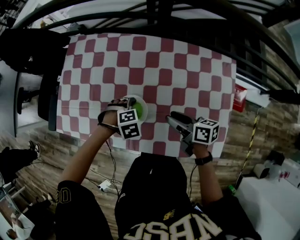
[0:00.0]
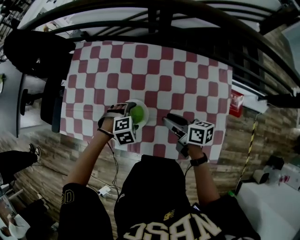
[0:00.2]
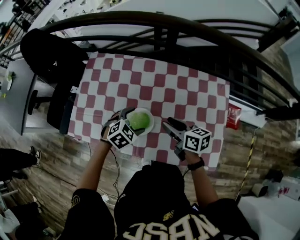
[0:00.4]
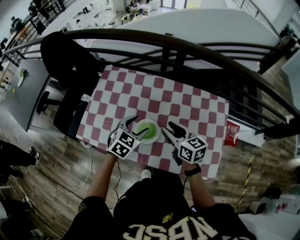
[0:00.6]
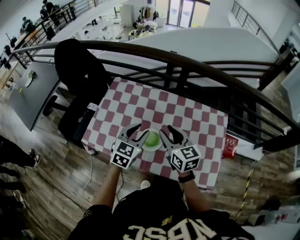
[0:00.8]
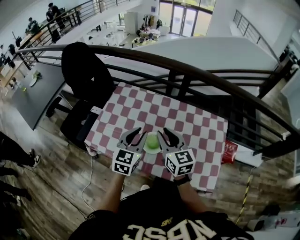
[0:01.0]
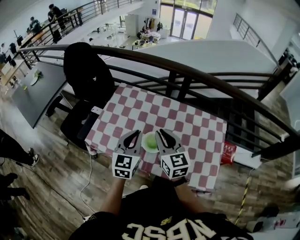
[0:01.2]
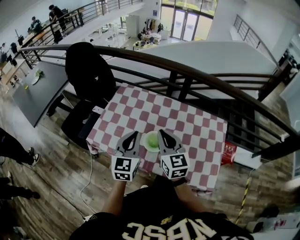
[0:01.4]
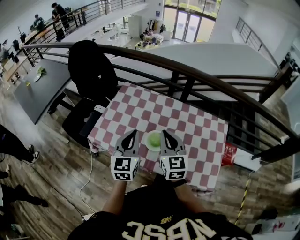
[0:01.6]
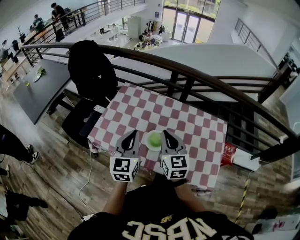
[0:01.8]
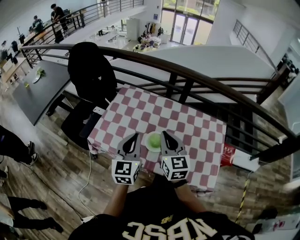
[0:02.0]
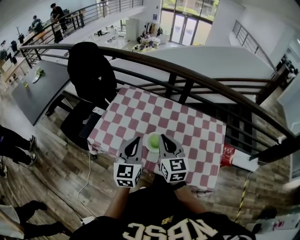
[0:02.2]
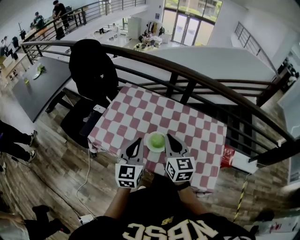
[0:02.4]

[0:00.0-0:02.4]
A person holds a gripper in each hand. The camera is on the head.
0:00.0 to 0:01.2: Both grippers travel together upward, approximately 30 cm. The left gripper tips its fingers upward by about 70 degrees, and closes. The right gripper rolls counterclockwise, seen from behind, by some 50 degrees, and closes its fingers.
0:01.2 to 0:02.4: The left gripper shifts some 5 cm backward.

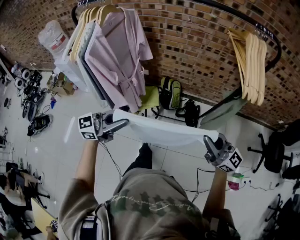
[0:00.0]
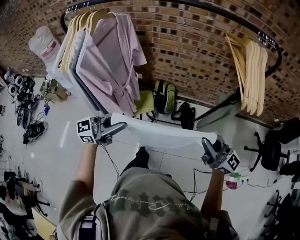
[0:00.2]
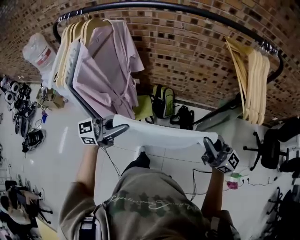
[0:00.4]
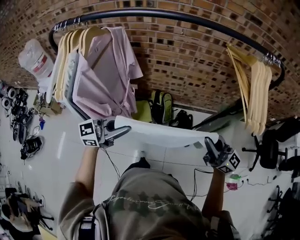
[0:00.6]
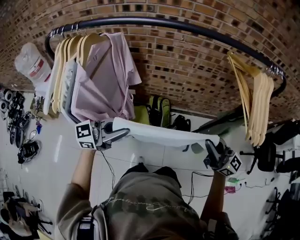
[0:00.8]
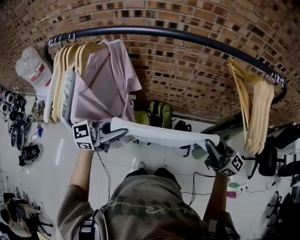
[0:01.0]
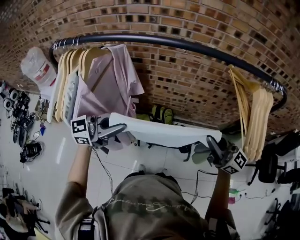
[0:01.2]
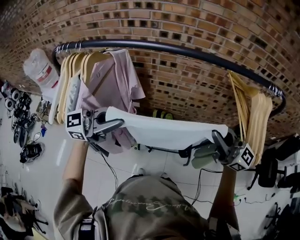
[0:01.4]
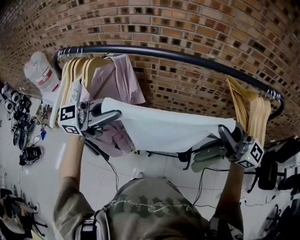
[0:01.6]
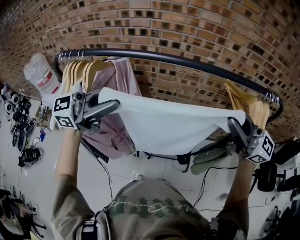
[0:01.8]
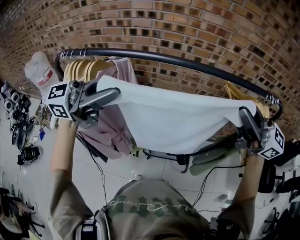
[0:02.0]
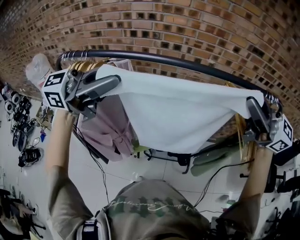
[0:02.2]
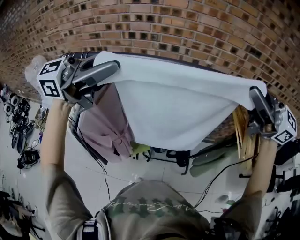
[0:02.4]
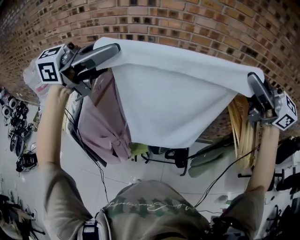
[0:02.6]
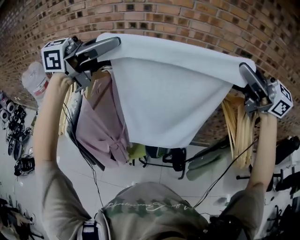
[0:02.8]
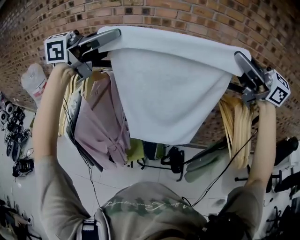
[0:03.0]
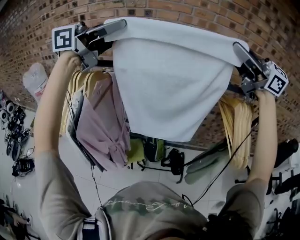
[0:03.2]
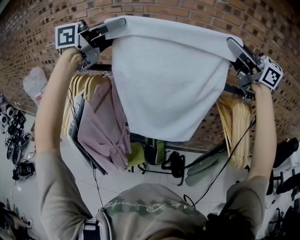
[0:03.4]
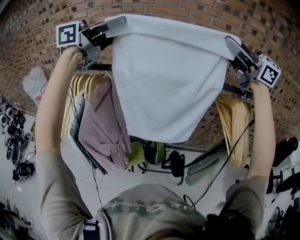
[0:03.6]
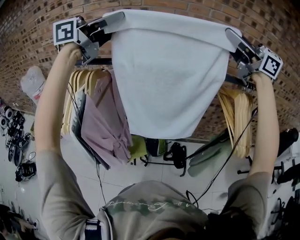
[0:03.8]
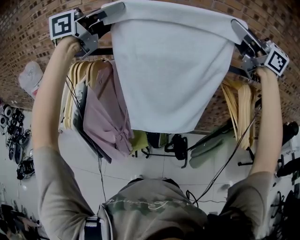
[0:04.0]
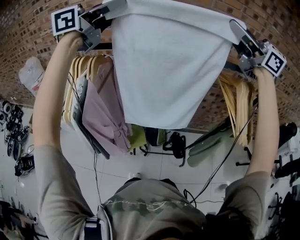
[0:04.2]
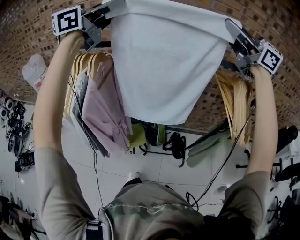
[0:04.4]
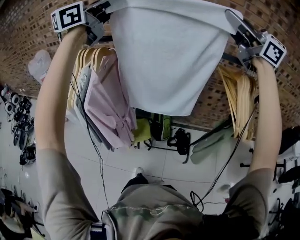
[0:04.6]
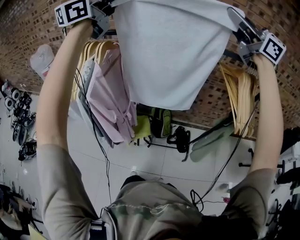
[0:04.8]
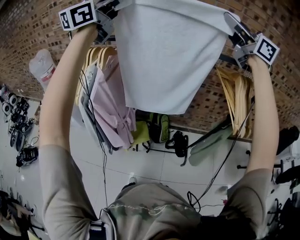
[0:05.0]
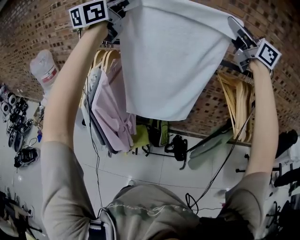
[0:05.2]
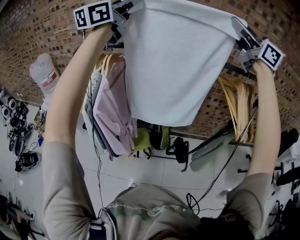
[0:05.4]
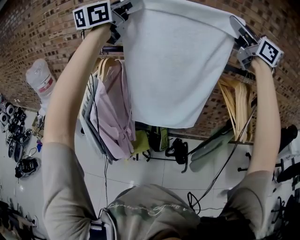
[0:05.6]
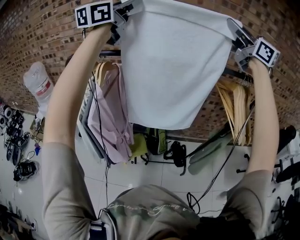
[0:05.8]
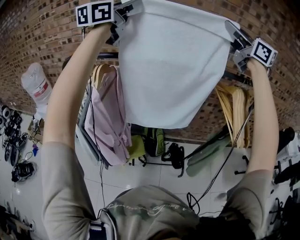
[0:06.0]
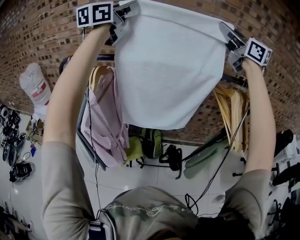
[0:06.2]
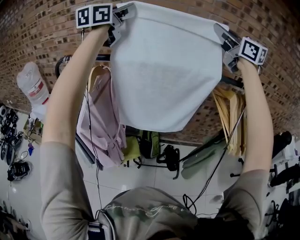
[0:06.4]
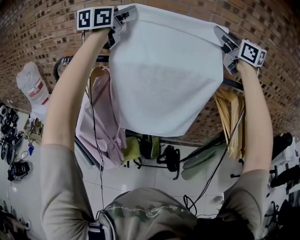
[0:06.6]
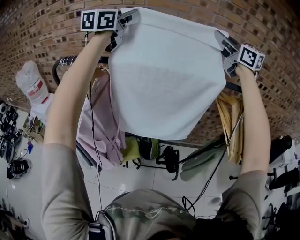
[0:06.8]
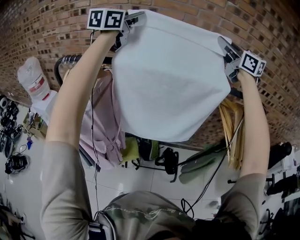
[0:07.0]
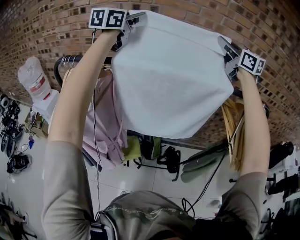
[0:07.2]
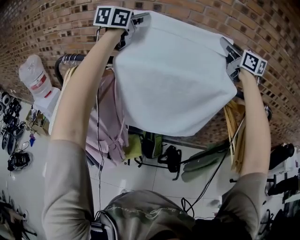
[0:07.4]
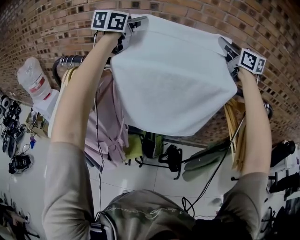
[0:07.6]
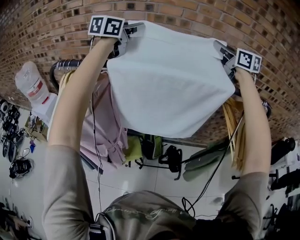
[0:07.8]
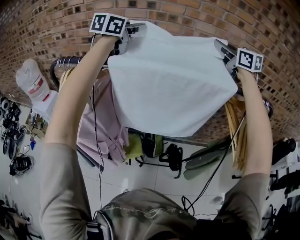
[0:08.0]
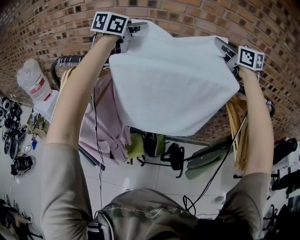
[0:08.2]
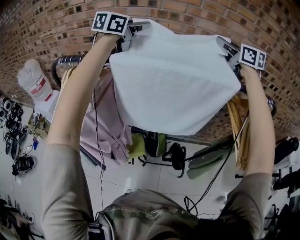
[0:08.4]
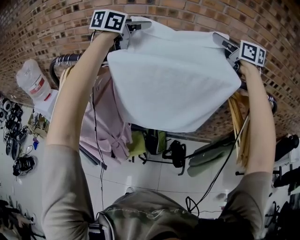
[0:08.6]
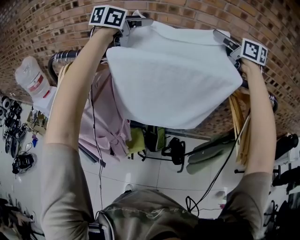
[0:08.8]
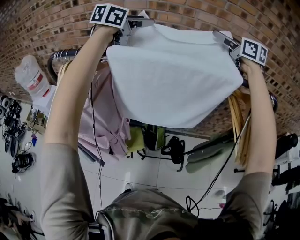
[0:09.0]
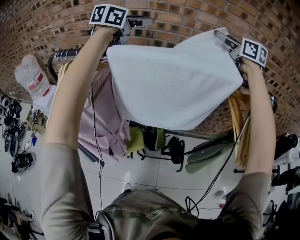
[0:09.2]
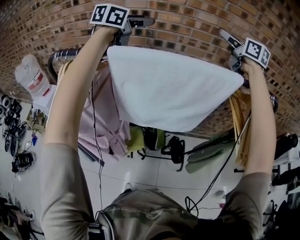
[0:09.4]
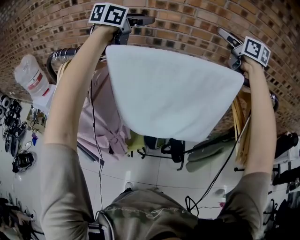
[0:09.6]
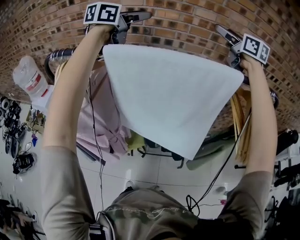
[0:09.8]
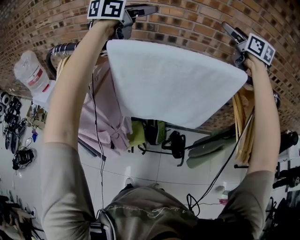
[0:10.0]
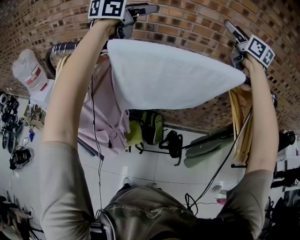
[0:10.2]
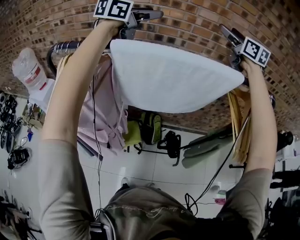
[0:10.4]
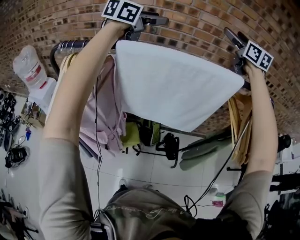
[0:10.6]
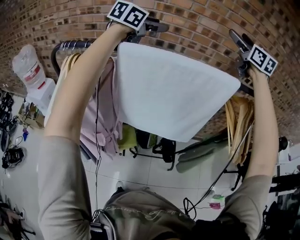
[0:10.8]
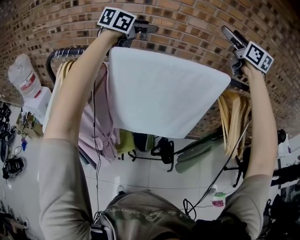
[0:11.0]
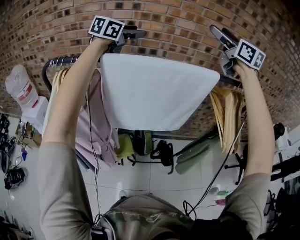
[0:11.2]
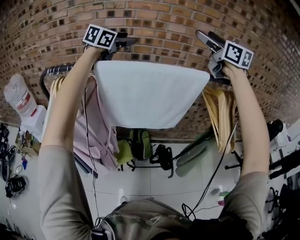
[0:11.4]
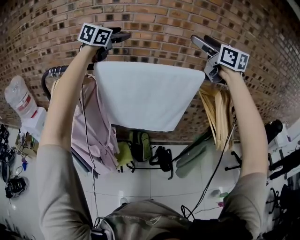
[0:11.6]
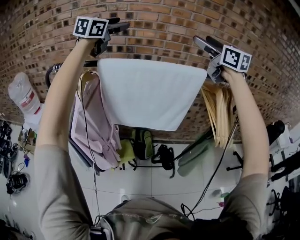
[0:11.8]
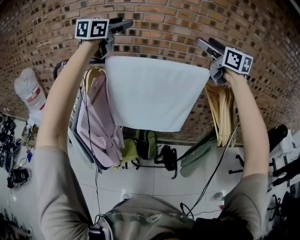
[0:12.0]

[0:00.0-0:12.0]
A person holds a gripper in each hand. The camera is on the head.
0:00.0 to 0:01.6: The right gripper ends up roughly 35 cm from where it was. Meanwhile the left gripper ends up approximately 30 cm from where it was.
0:01.6 to 0:03.0: Both grippers move upward, some 25 cm.
0:03.0 to 0:04.4: There are only small adjustments of the grippers.
0:04.4 to 0:06.0: Both grippers move forward, approximately 5 cm.
0:06.0 to 0:07.6: The two grippers go roughly 20 cm forward and downward.
0:07.6 to 0:09.0: The left gripper heads downward, covering about 5 cm, and opens its fingers, while the right gripper opens.
0:09.0 to 0:10.4: The grippers make only small movements.
0:10.4 to 0:12.0: The right gripper moves backward, roughly 15 cm, while the left gripper shifts approximately 10 cm upward and backward, and rotates roughly 20 degrees.

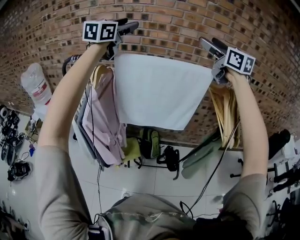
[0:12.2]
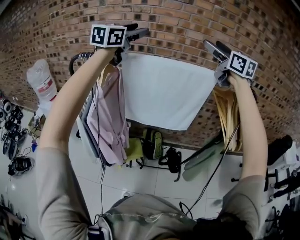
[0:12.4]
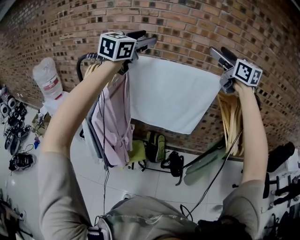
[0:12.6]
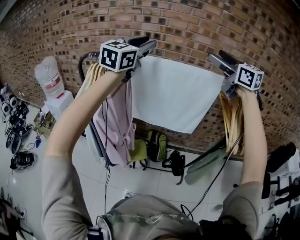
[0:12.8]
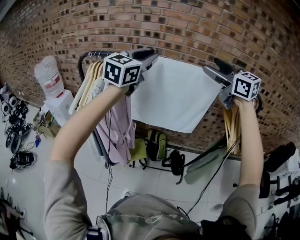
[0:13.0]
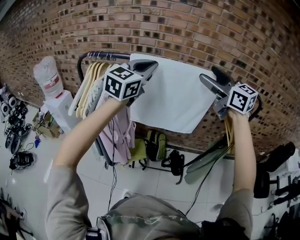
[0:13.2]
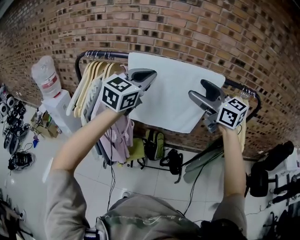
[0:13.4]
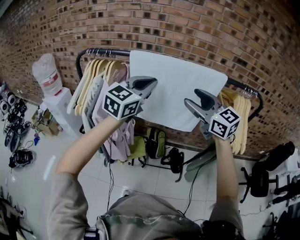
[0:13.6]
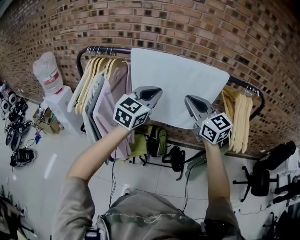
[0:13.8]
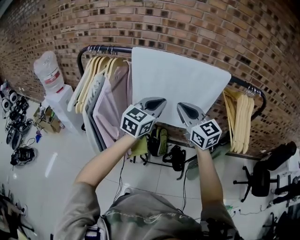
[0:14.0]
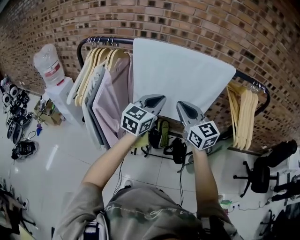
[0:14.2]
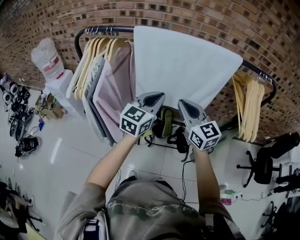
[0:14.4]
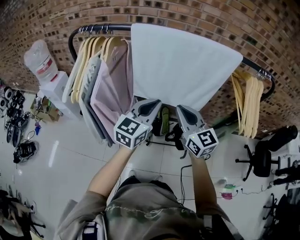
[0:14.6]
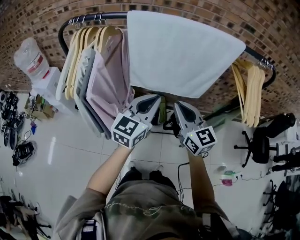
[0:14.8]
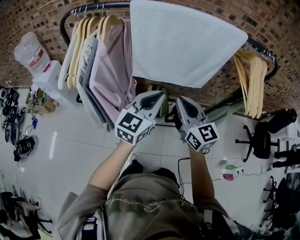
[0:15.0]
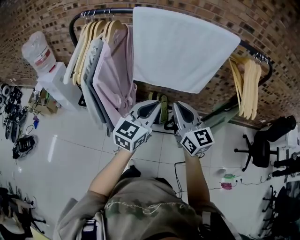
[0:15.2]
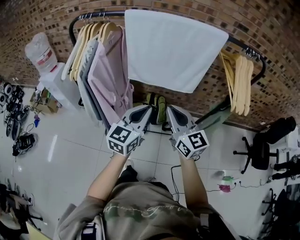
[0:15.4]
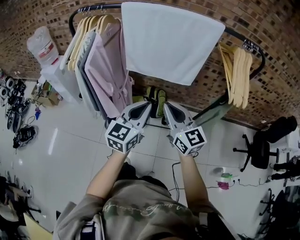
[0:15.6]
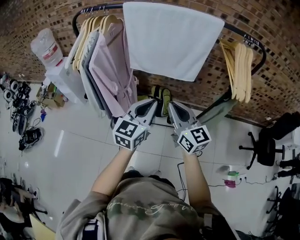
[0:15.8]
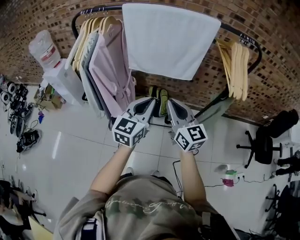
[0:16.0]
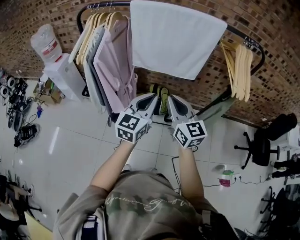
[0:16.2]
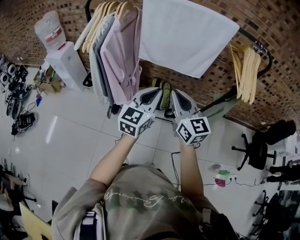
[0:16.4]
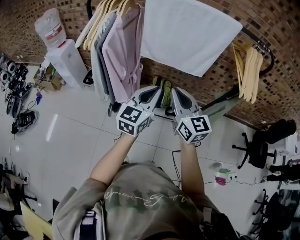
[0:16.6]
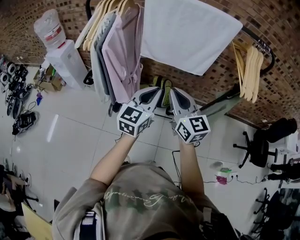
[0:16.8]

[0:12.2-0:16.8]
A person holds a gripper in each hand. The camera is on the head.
0:12.2 to 0:13.8: The left gripper is displaced downward and backward by about 30 cm, and closes its fingers, while the right gripper moves downward, backward and to the left, approximately 30 cm, and closes up.
0:13.8 to 0:15.2: The left gripper goes about 20 cm backward and downward, while the right gripper travels downward and backward by approximately 20 cm.
0:15.2 to 0:16.8: Both grippers move backward, roughly 5 cm.

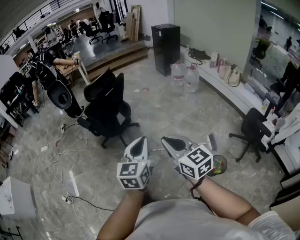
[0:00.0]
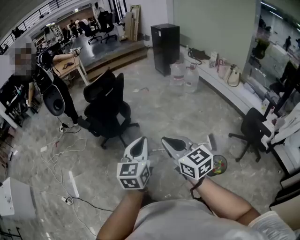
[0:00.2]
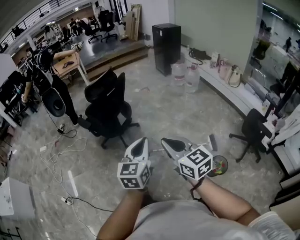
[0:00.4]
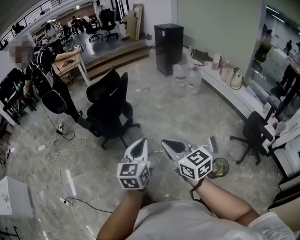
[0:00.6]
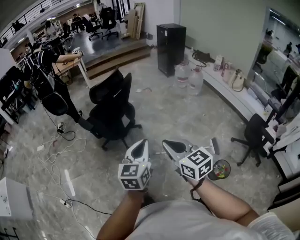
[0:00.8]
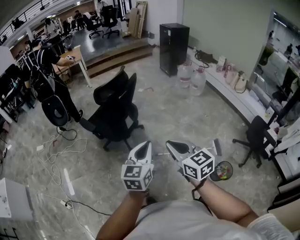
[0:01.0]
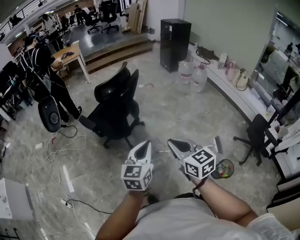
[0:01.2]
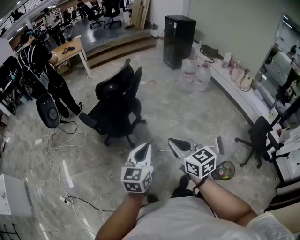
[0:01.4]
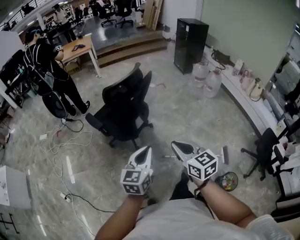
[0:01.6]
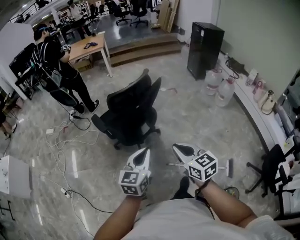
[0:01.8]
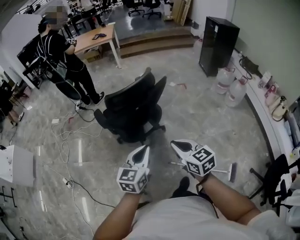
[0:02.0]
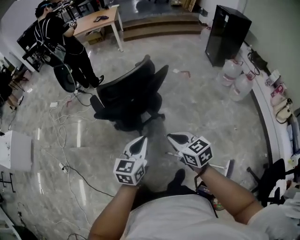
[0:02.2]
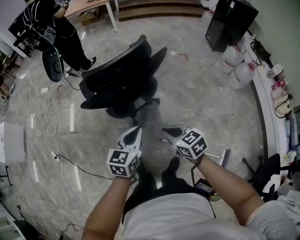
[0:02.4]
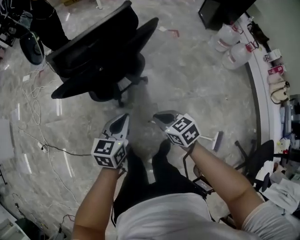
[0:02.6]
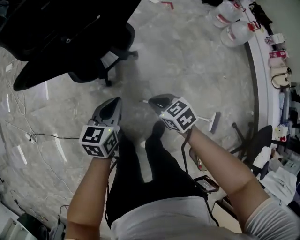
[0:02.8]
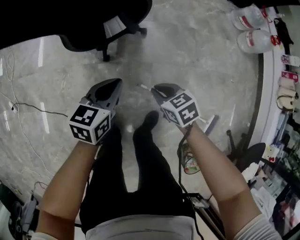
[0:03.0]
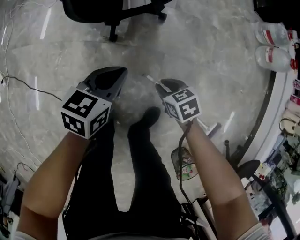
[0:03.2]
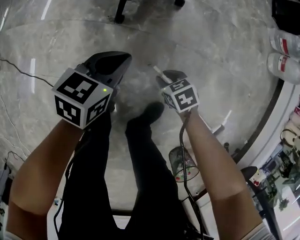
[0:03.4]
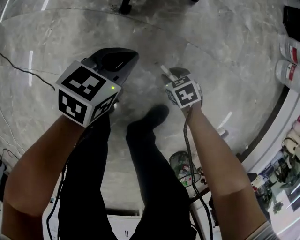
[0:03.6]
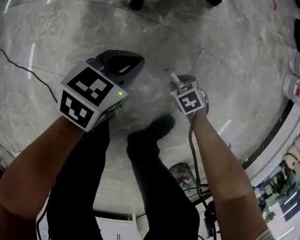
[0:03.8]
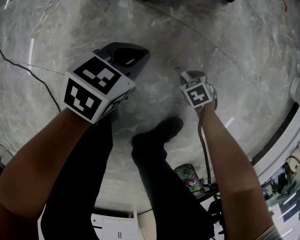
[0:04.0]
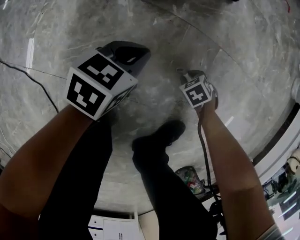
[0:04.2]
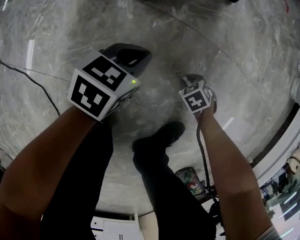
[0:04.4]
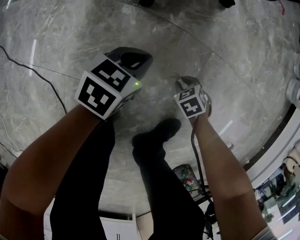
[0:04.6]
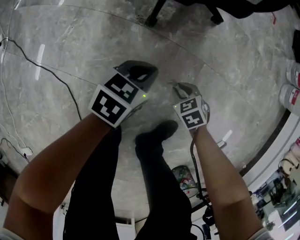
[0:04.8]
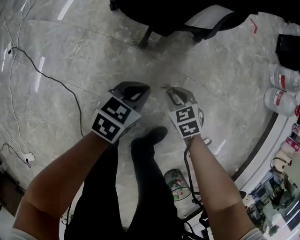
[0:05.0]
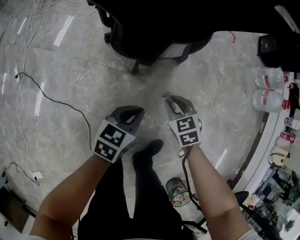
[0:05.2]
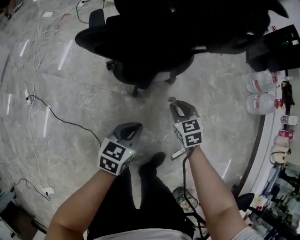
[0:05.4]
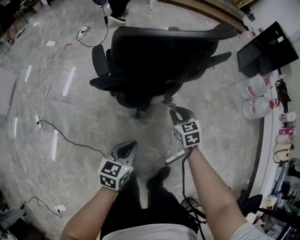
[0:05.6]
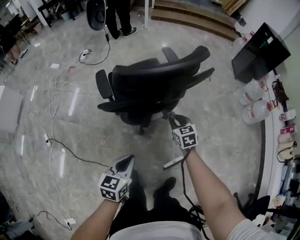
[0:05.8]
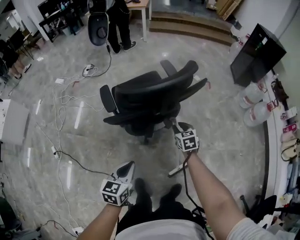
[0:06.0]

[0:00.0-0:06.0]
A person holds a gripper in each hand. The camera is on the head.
0:00.0 to 0:01.6: Both grippers travel together forward and to the left, some 30 cm.
0:01.6 to 0:03.0: The left gripper goes roughly 50 cm downward and forward, and changes its angle by roughly 20 degrees; the right gripper moves downward, some 60 cm, and points its fingers approximately 30 degrees further downward.
0:03.0 to 0:04.4: The grippers both shift downward by roughly 60 cm. The right gripper tilts its fingers approximately 30 degrees downward.
0:04.4 to 0:06.0: The grippers both shift upward by approximately 80 cm. The left gripper swivels about 20 degrees. The right gripper tips its fingers upward by some 40 degrees.
